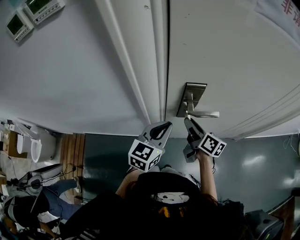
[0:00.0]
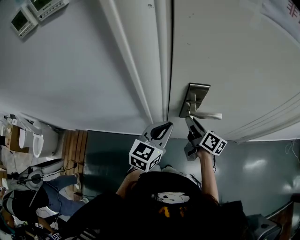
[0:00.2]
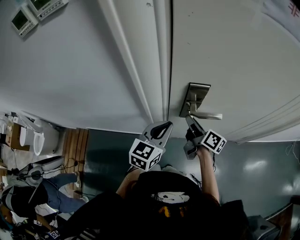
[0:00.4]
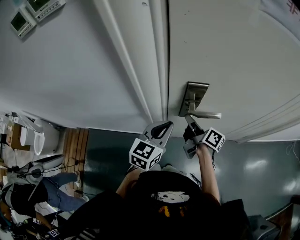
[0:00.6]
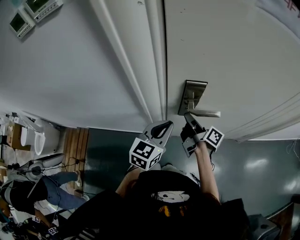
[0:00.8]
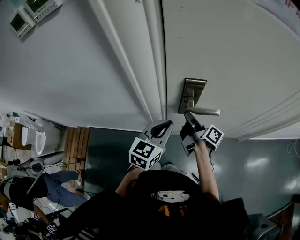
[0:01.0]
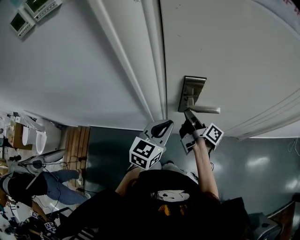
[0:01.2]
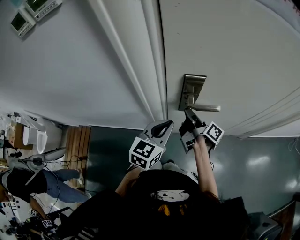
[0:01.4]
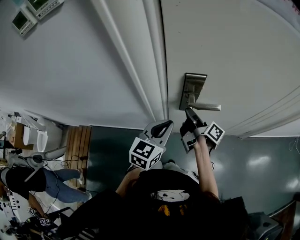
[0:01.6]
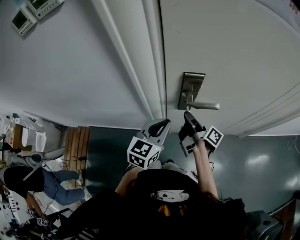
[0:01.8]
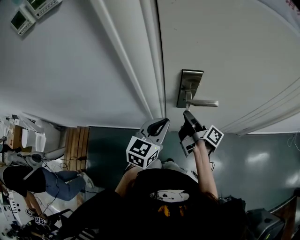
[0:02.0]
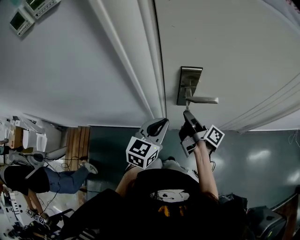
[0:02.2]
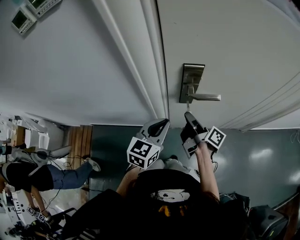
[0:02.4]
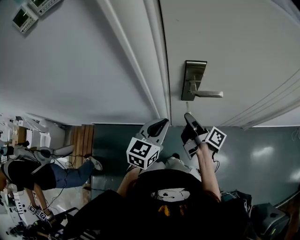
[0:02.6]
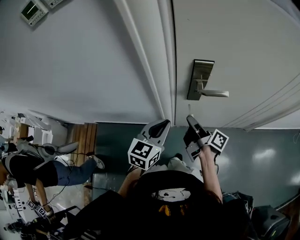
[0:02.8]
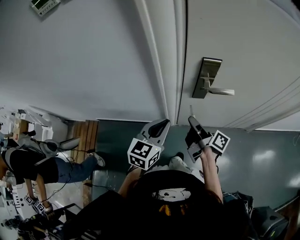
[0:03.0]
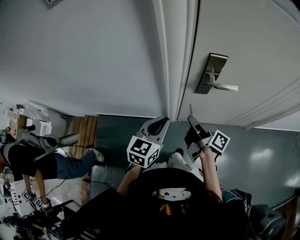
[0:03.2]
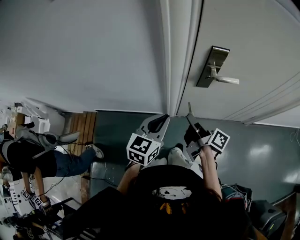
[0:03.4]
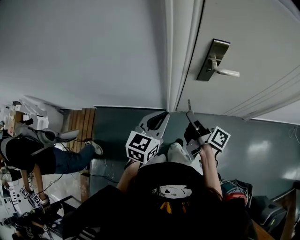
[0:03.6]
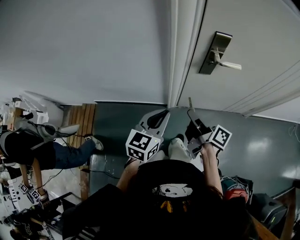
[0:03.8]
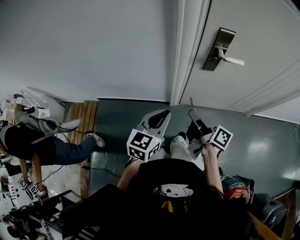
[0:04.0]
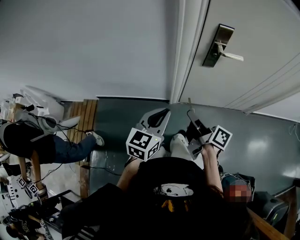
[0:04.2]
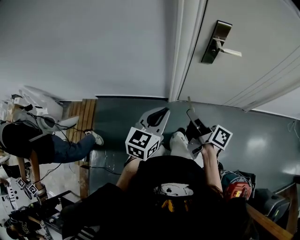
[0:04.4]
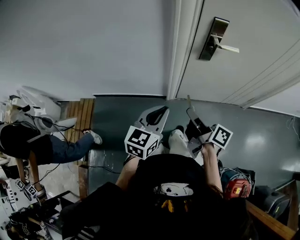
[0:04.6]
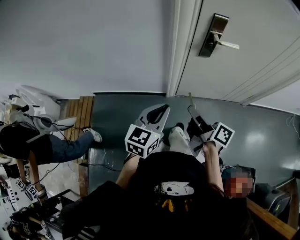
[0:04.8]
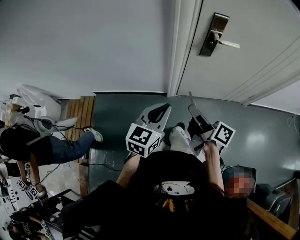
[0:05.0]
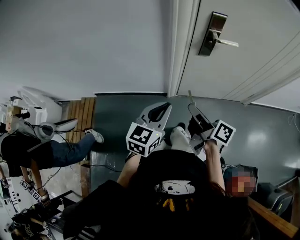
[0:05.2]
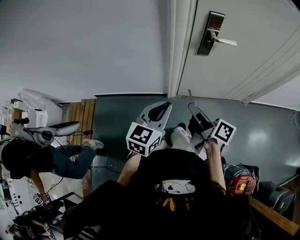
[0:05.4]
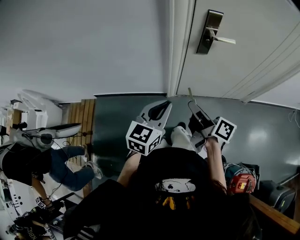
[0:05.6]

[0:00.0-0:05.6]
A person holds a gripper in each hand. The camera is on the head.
0:00.0 to 0:01.4: The right gripper changes its angle by roughly 40 degrees, and closes.
0:01.4 to 0:02.8: The right gripper shifts approximately 10 cm backward, while the left gripper moves backward and to the left, roughly 10 cm.
0:02.8 to 0:04.2: The grippers both shift backward and to the left by roughly 20 cm.
0:04.2 to 0:05.6: The grippers move only a little.

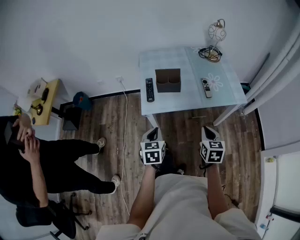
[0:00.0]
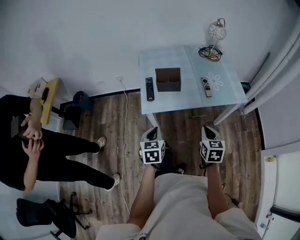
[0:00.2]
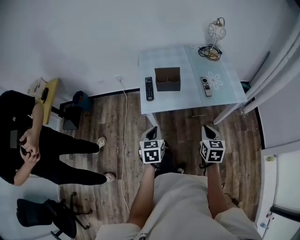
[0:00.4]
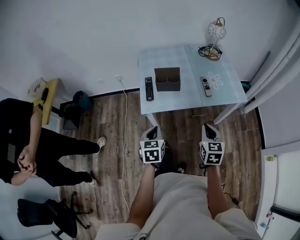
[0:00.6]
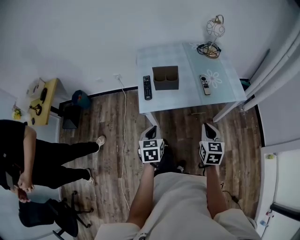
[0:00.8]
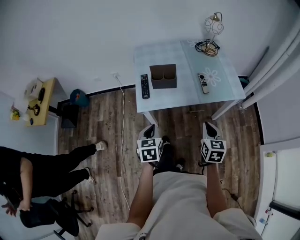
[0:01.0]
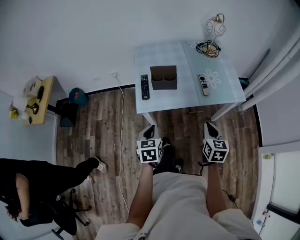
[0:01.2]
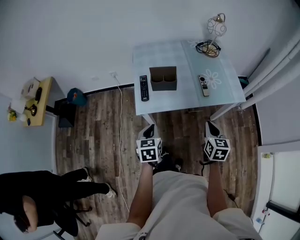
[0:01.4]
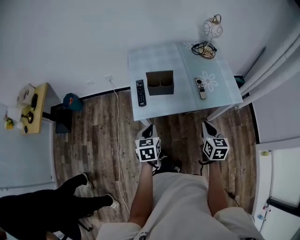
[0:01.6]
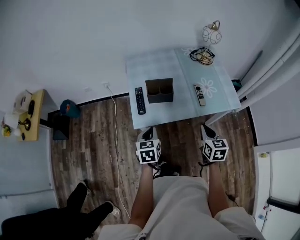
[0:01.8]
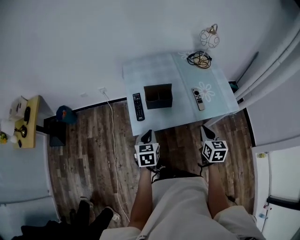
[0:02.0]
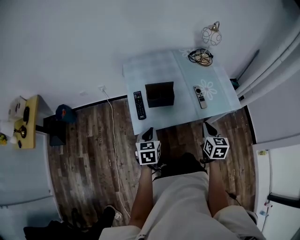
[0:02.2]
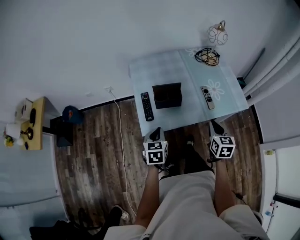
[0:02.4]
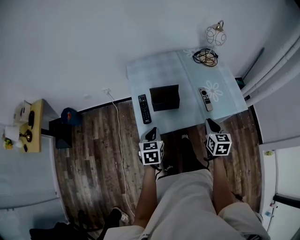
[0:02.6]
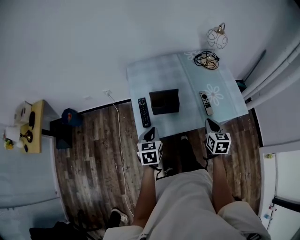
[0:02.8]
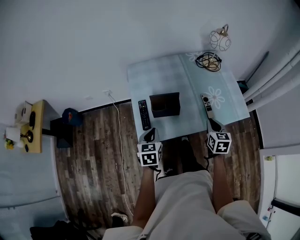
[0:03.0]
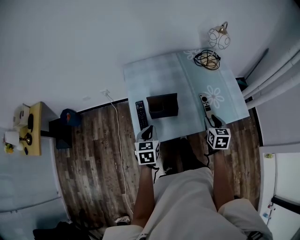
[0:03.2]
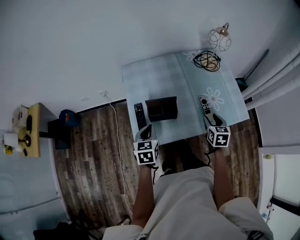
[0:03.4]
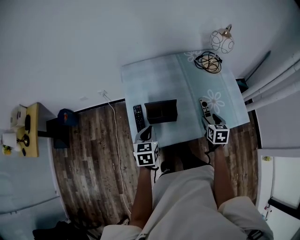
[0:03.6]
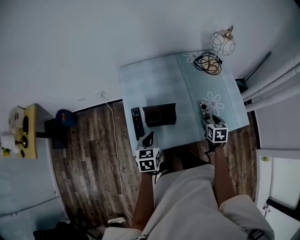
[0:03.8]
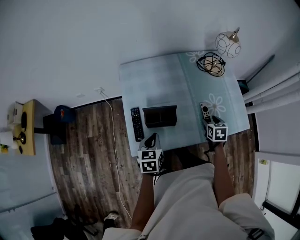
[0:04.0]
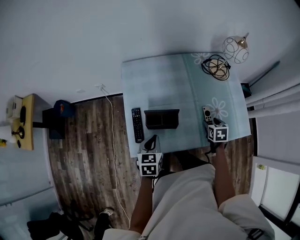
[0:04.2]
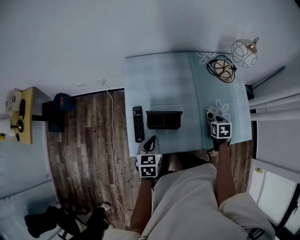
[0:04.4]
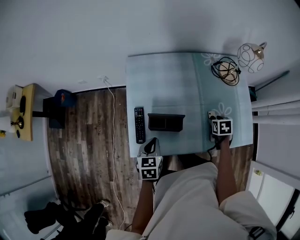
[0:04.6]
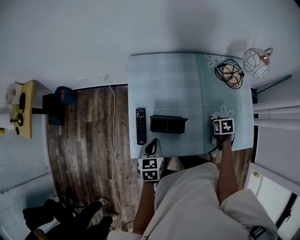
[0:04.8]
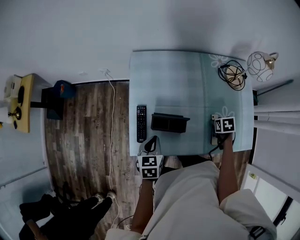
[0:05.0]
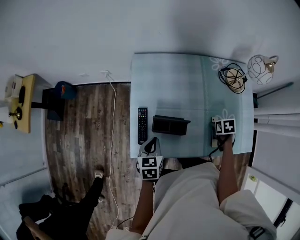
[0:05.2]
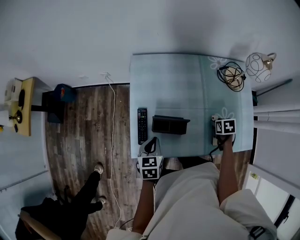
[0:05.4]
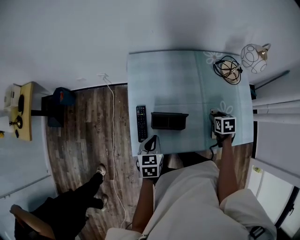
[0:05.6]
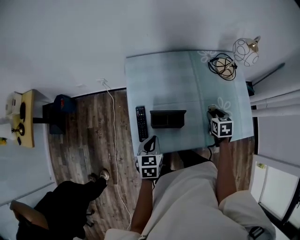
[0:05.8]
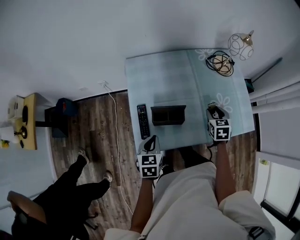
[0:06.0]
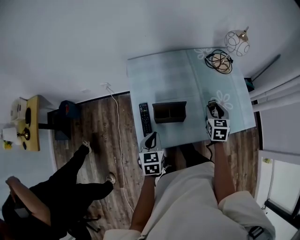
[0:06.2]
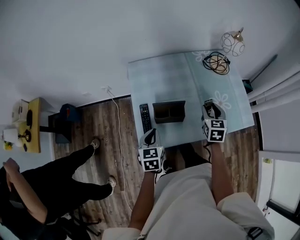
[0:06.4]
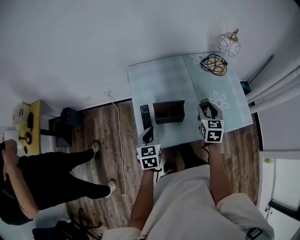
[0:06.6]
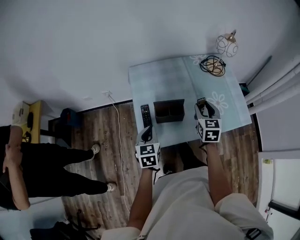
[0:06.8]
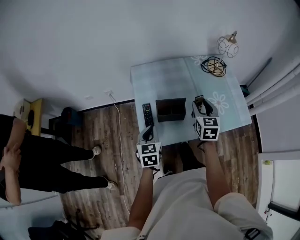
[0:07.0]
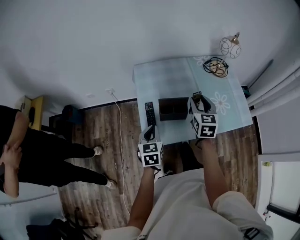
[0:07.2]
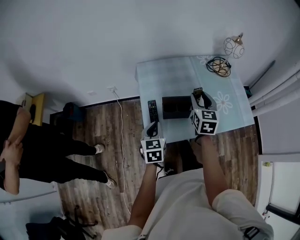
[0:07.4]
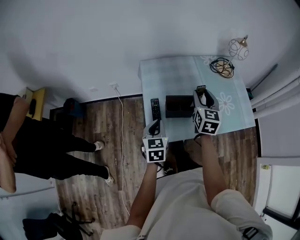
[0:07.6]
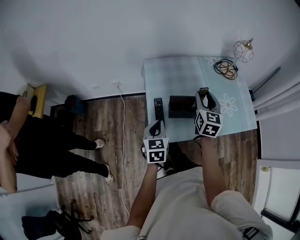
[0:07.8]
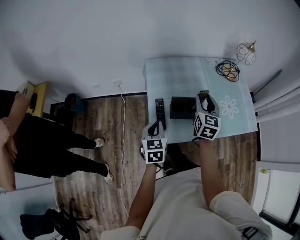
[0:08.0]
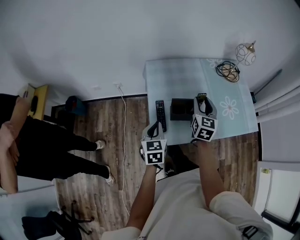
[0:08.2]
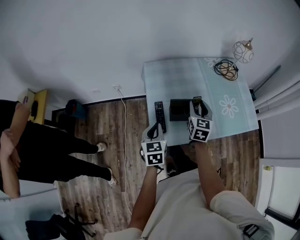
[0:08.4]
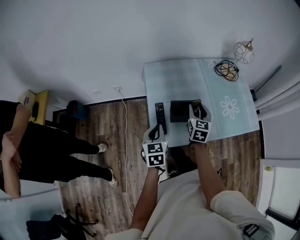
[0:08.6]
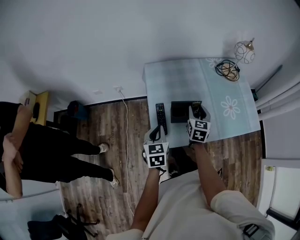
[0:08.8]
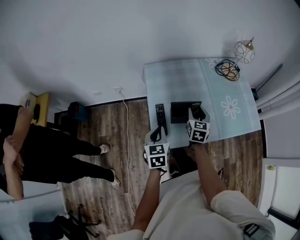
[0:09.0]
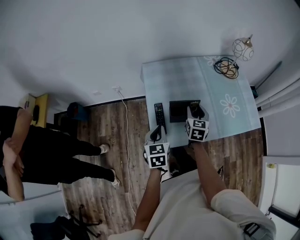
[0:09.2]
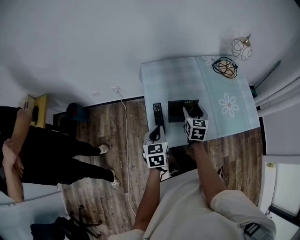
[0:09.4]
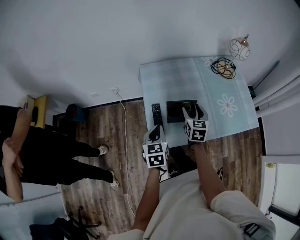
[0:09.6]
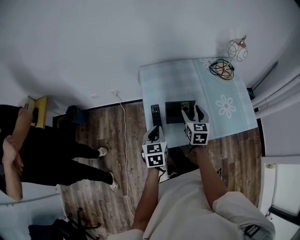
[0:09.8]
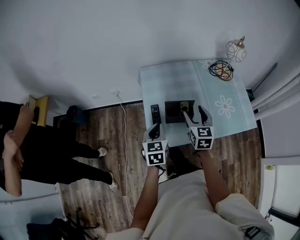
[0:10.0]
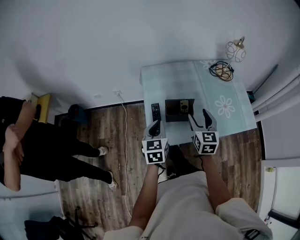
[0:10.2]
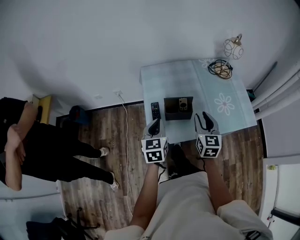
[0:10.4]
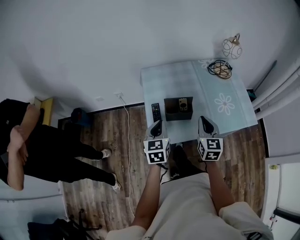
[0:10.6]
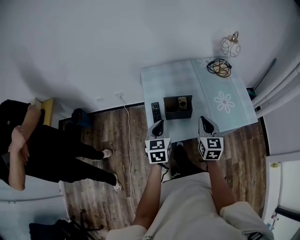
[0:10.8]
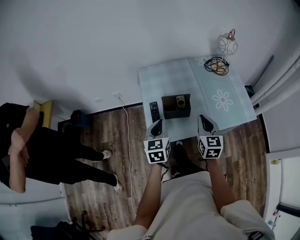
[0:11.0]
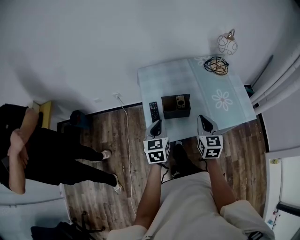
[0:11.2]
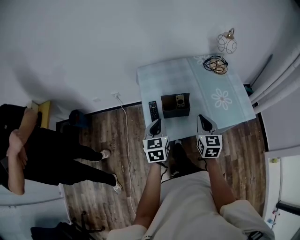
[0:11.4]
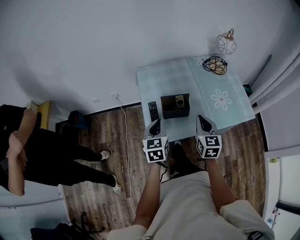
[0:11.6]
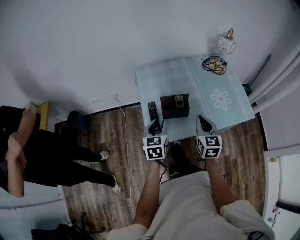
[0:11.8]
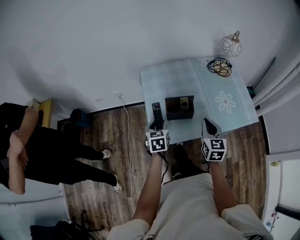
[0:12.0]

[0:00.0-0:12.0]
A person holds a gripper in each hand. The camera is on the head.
0:00.0 to 0:01.6: Both grippers travel together forward, about 5 cm.
0:01.6 to 0:03.0: Both grippers travel together forward, roughly 15 cm.
0:03.0 to 0:04.4: The left gripper moves forward and downward, some 10 cm. The right gripper travels forward and downward by approximately 20 cm, rotates roughly 30 degrees, and opens up.
0:04.4 to 0:06.0: The right gripper shifts roughly 5 cm upward.
0:06.0 to 0:07.6: The right gripper goes some 20 cm upward and to the left, and rotates approximately 30 degrees; the left gripper goes roughly 5 cm upward.
0:07.6 to 0:09.0: The right gripper goes some 15 cm downward.
0:09.0 to 0:10.4: The left gripper moves approximately 5 cm; the right gripper shifts approximately 15 cm backward and upward, and opens, then closes once more.
0:10.4 to 0:12.0: The right gripper closes up. Meanwhile the left gripper travels downward by some 10 cm, and opens its fingers.

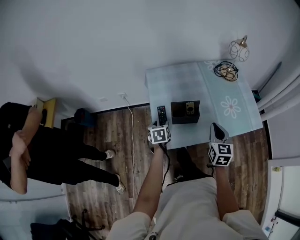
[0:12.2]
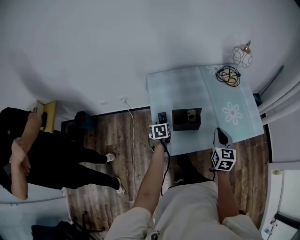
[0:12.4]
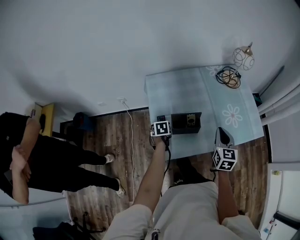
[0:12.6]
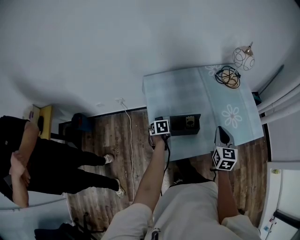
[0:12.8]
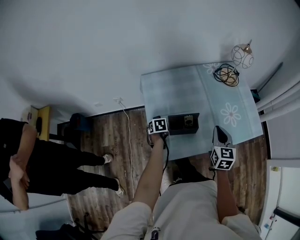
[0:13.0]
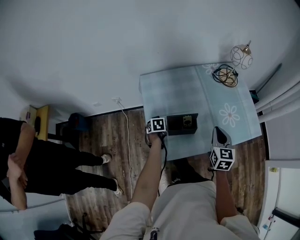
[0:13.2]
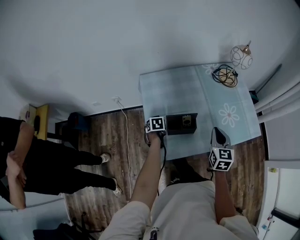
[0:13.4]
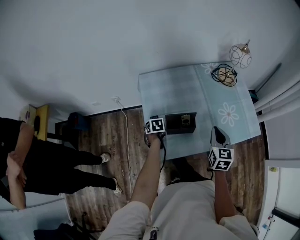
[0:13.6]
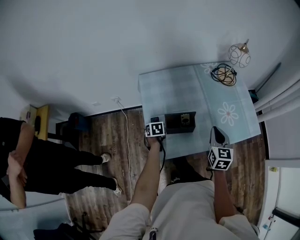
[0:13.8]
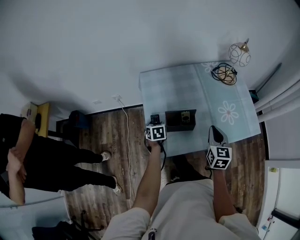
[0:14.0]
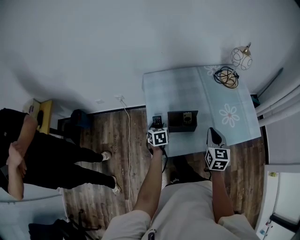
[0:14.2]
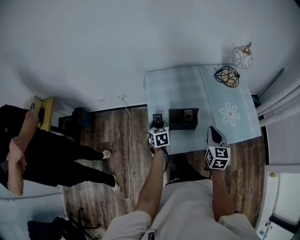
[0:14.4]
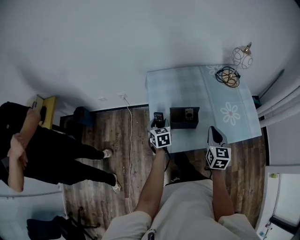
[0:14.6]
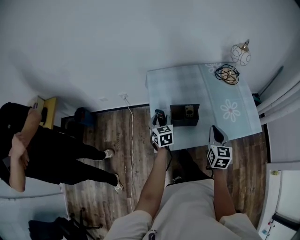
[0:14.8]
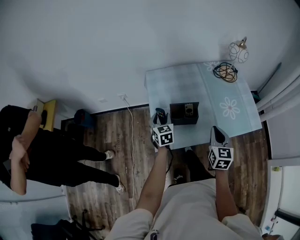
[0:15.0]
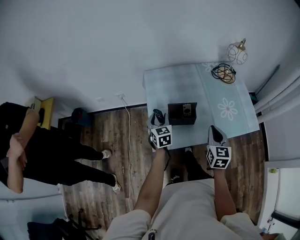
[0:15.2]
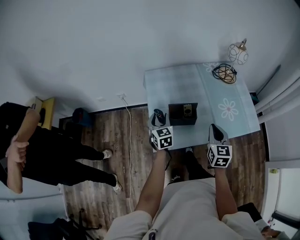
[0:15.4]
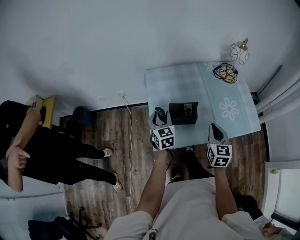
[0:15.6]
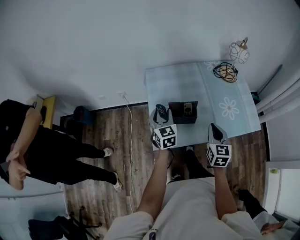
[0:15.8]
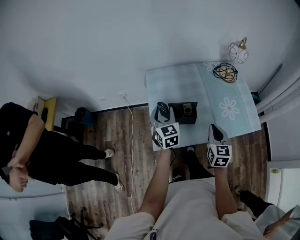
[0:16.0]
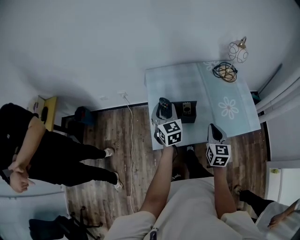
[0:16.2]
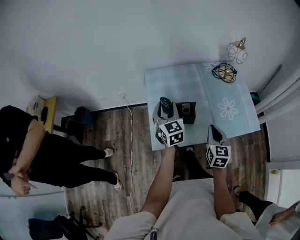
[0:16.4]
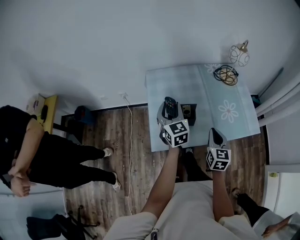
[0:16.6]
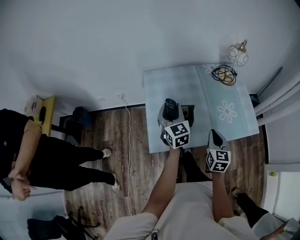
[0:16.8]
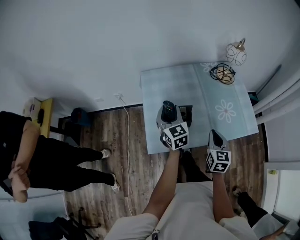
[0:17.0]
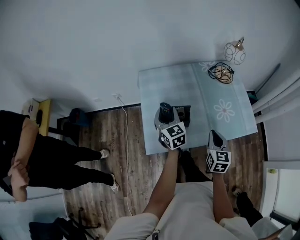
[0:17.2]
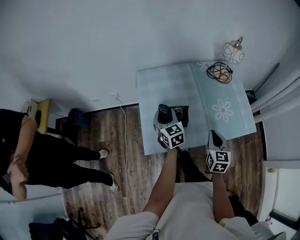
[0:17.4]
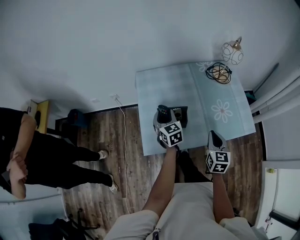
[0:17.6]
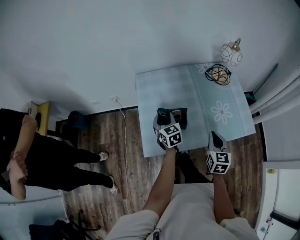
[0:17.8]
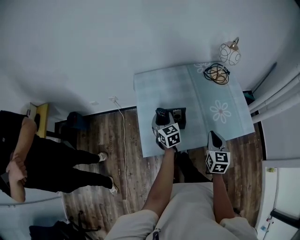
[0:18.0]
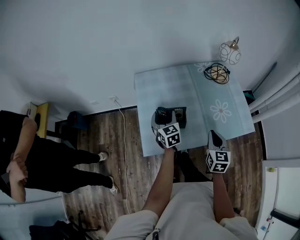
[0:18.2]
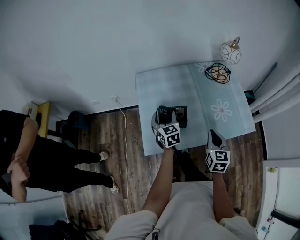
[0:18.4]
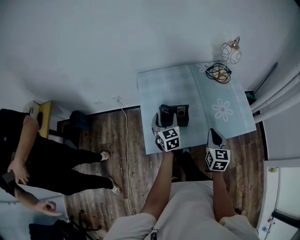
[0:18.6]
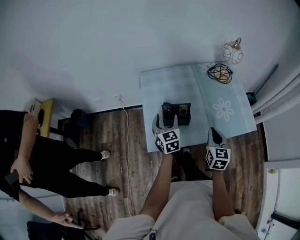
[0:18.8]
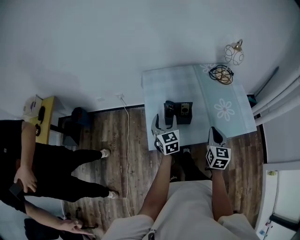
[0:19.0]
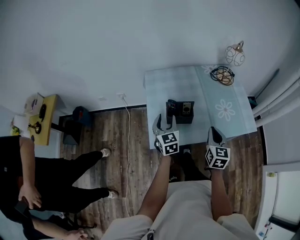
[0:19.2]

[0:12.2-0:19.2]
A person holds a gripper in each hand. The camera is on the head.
0:12.2 to 0:13.6: The left gripper goes roughly 10 cm forward and downward. The right gripper goes about 5 cm forward.
0:13.6 to 0:15.0: The right gripper heads backward, covering roughly 5 cm. The left gripper heads upward, covering some 15 cm, and angles its fingers upward, by approximately 30 degrees.
0:15.0 to 0:16.4: The left gripper heads upward, covering approximately 10 cm.
0:16.4 to 0:17.8: The right gripper shifts some 5 cm to the right, while the left gripper travels downward by roughly 10 cm.
0:17.8 to 0:19.2: The left gripper shifts roughly 10 cm backward and upward, while the right gripper changes place by some 5 cm.
